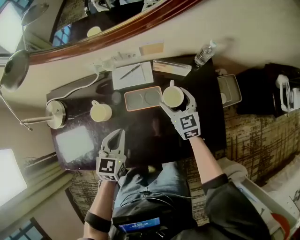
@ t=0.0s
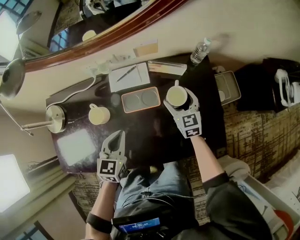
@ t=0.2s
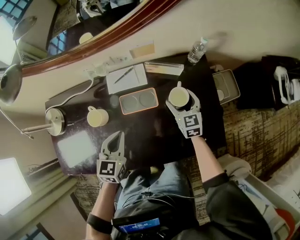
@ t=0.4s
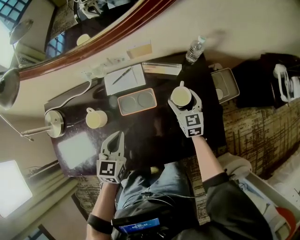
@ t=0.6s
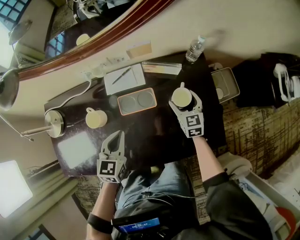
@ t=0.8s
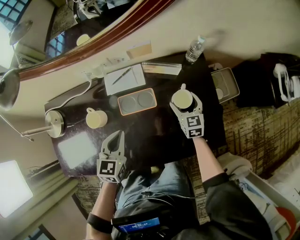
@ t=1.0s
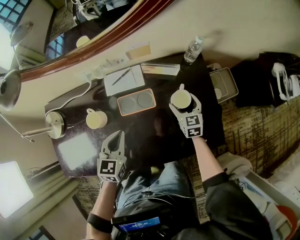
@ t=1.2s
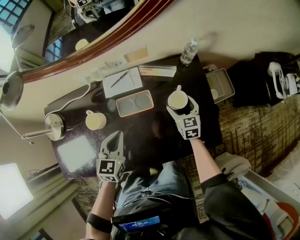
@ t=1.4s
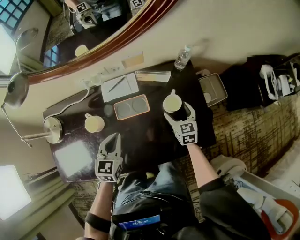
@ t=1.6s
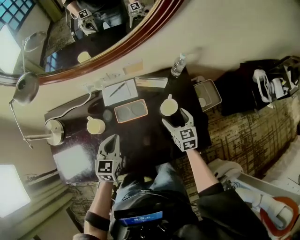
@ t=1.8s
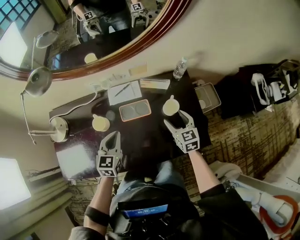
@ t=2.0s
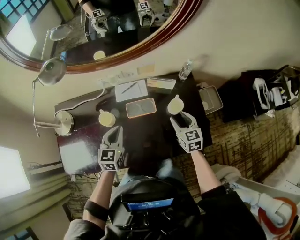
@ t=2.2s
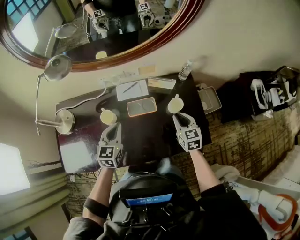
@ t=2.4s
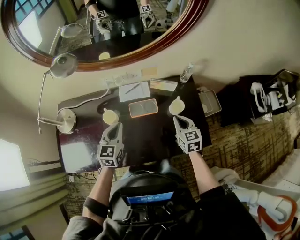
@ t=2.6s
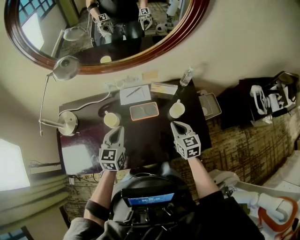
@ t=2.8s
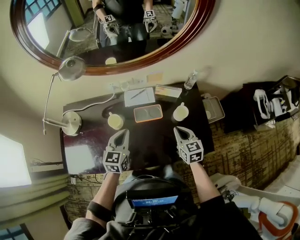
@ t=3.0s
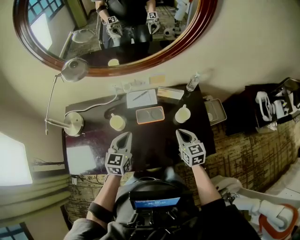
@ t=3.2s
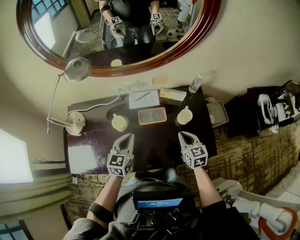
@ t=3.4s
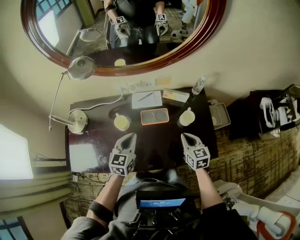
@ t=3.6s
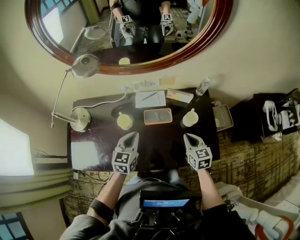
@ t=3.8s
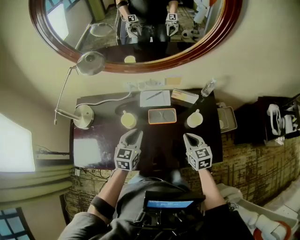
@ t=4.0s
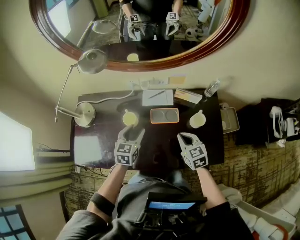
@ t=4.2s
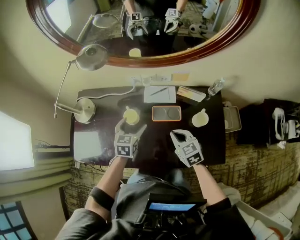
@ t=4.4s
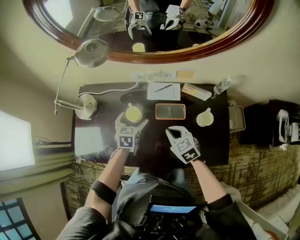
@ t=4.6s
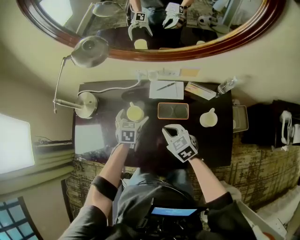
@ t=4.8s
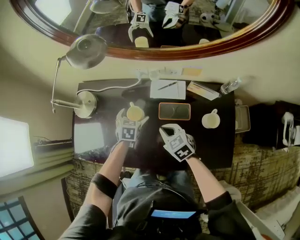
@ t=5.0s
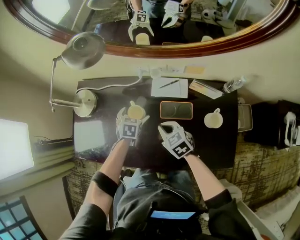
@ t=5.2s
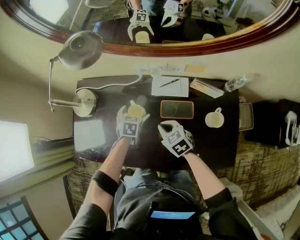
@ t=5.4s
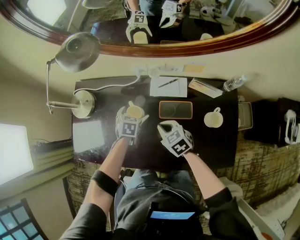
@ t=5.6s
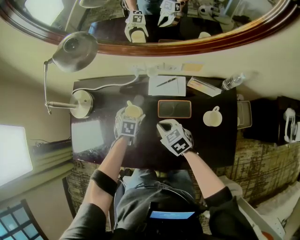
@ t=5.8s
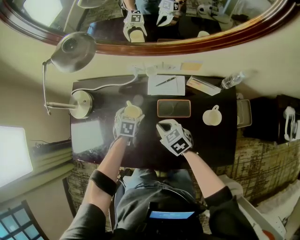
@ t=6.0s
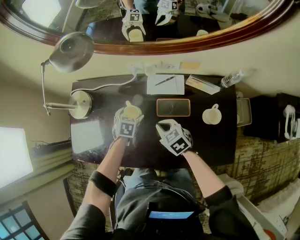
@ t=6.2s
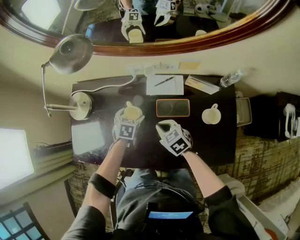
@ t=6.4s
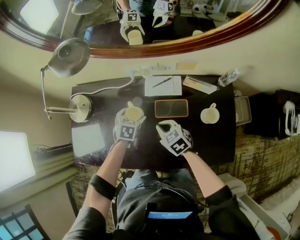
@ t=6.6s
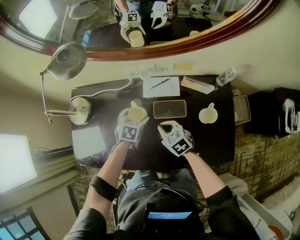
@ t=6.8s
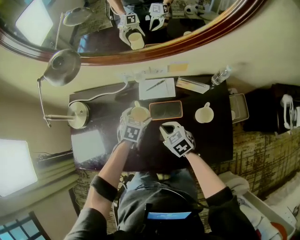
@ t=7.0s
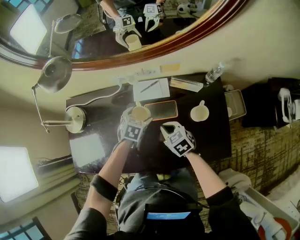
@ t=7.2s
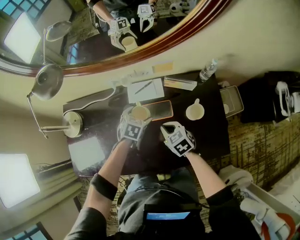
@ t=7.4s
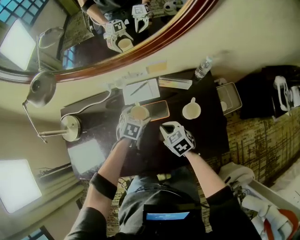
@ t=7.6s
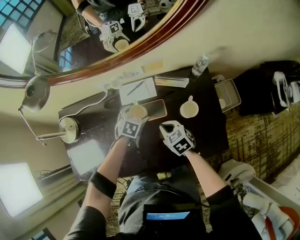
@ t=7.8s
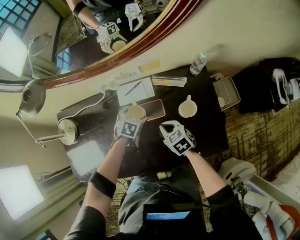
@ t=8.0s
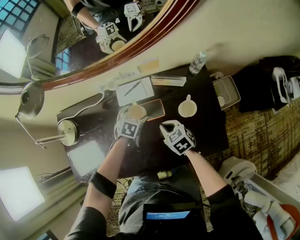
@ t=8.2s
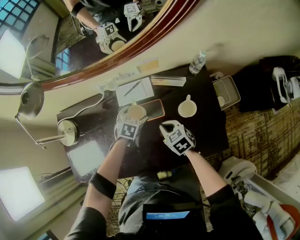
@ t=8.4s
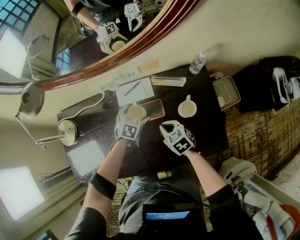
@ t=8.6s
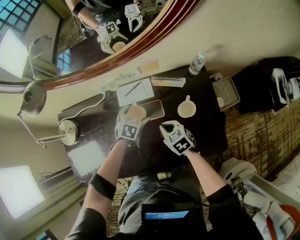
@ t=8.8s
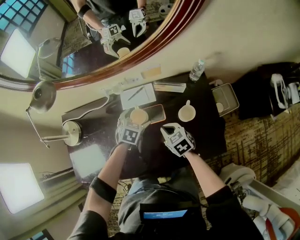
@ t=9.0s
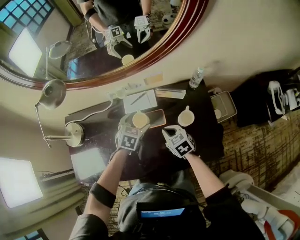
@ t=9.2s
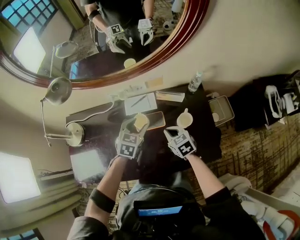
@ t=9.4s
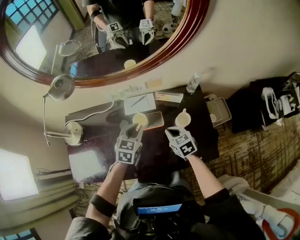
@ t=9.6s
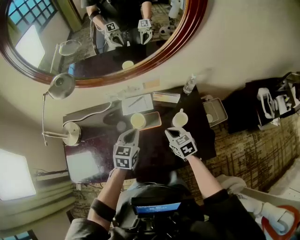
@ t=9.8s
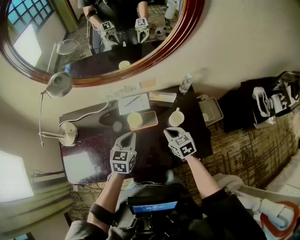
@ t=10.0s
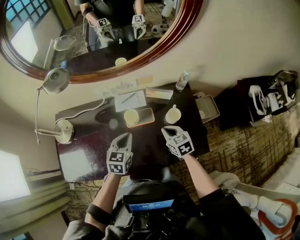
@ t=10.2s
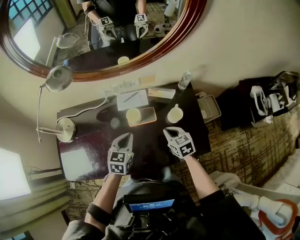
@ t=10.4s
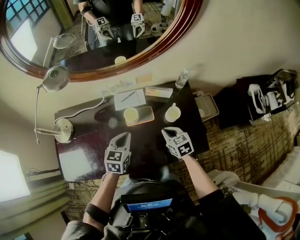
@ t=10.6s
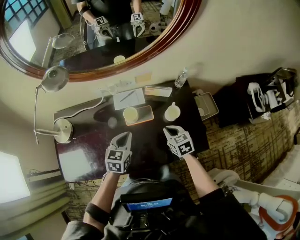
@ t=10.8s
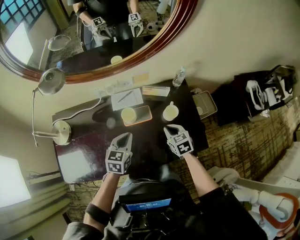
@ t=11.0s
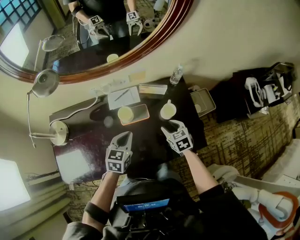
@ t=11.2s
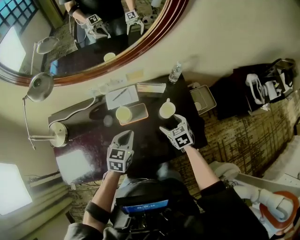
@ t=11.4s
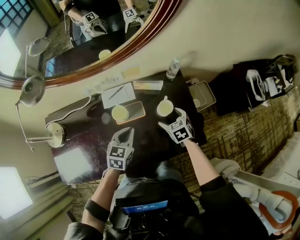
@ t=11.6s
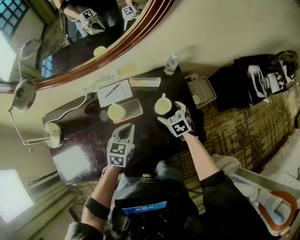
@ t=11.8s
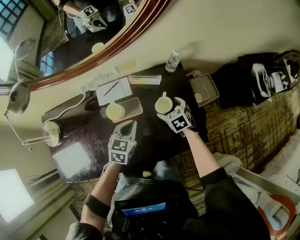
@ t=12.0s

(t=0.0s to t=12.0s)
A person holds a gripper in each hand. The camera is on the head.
t=0.0s - t=1.6s: The right gripper shifts roughly 10 cm to the right.
t=1.6s - t=3.0s: The right gripper is displaced upward, backward and to the left by some 20 cm, and closes its fingers. Meanwhile the left gripper is displaced to the left and upward by some 10 cm.
t=3.0s - t=4.4s: The right gripper is displaced to the left by some 10 cm, and swivels roughly 30 degrees. The left gripper moves forward and downward, approximately 10 cm, and opens.
t=4.4s - t=6.0s: The left gripper moves downward and forward, about 15 cm, and rotates approximately 30 degrees. Meanwhile the right gripper shifts about 15 cm downward, to the left and forward.
t=6.0s - t=7.6s: Both grippers move to the right, some 15 cm. The left gripper changes its angle by about 20 degrees.
t=7.6s - t=9.0s: The grippers make only small movements.
t=9.0s - t=10.4s: The right gripper goes some 5 cm upward; the left gripper shifts roughly 15 cm backward and upward, turns by roughly 30 degrees, and closes up.
t=10.4s - t=12.0s: The left gripper moves to the right, forward and downward, approximately 15 cm; the right gripper travels downward, forward and to the right by approximately 15 cm, and opens its fingers.

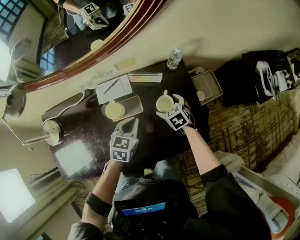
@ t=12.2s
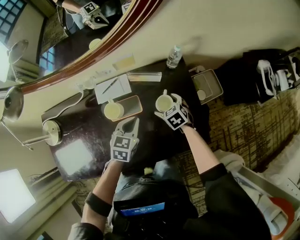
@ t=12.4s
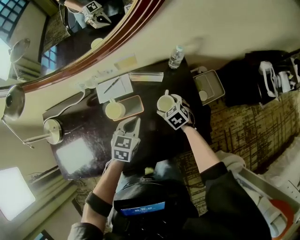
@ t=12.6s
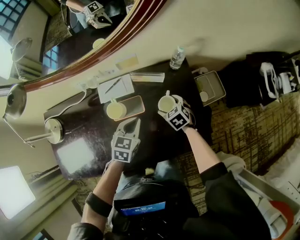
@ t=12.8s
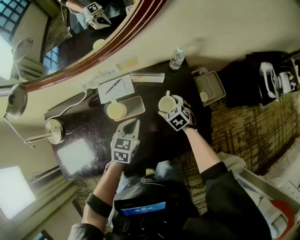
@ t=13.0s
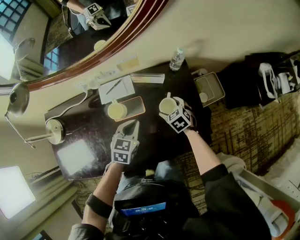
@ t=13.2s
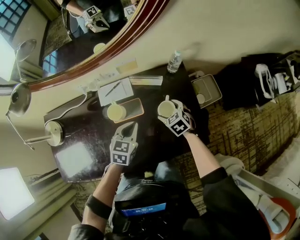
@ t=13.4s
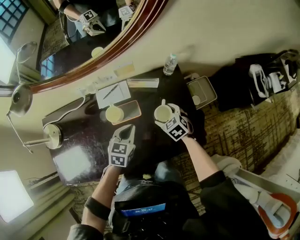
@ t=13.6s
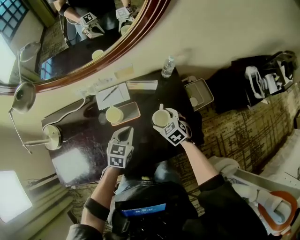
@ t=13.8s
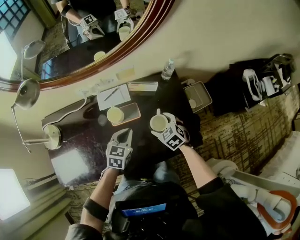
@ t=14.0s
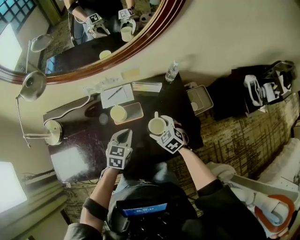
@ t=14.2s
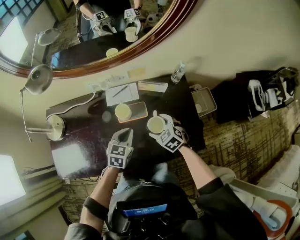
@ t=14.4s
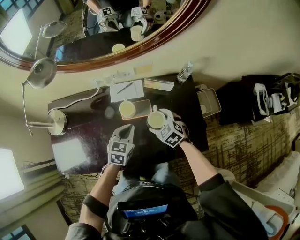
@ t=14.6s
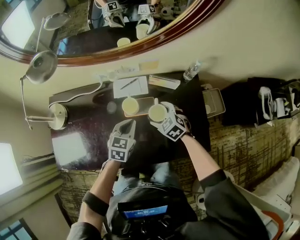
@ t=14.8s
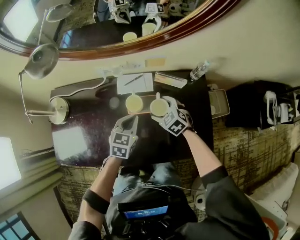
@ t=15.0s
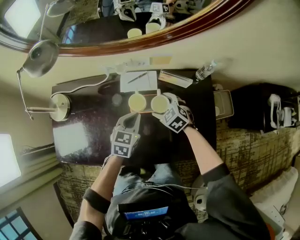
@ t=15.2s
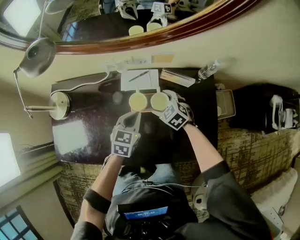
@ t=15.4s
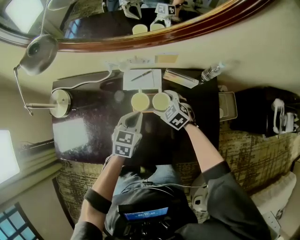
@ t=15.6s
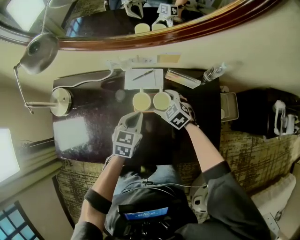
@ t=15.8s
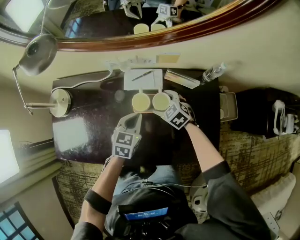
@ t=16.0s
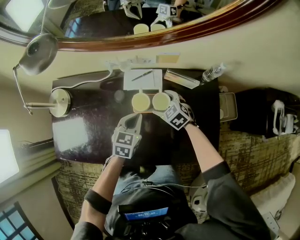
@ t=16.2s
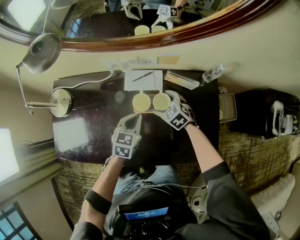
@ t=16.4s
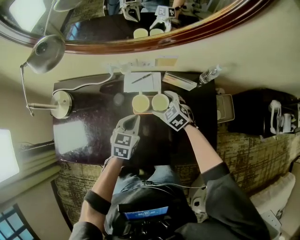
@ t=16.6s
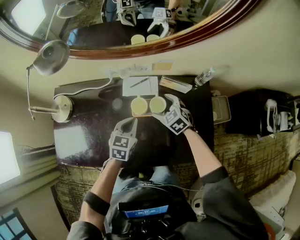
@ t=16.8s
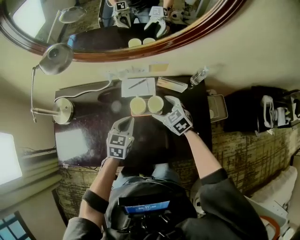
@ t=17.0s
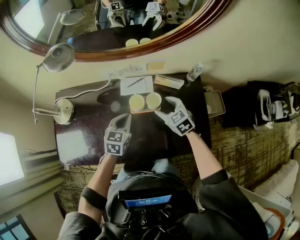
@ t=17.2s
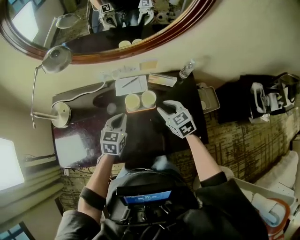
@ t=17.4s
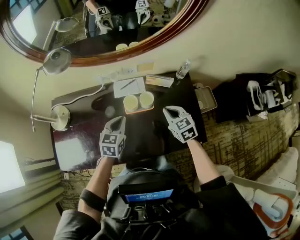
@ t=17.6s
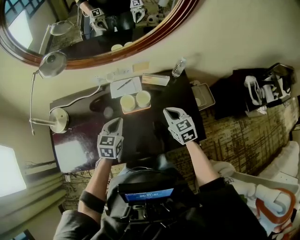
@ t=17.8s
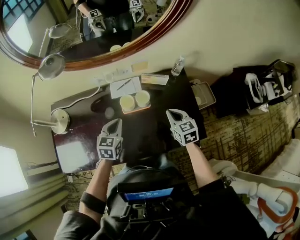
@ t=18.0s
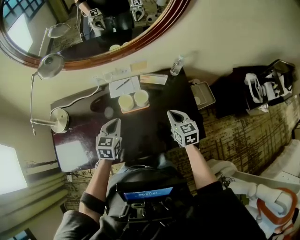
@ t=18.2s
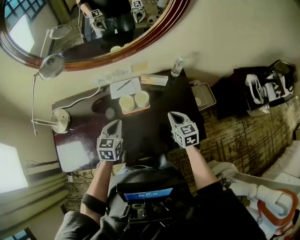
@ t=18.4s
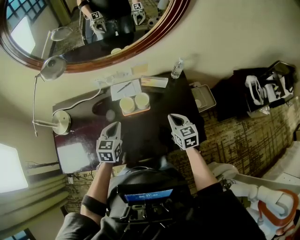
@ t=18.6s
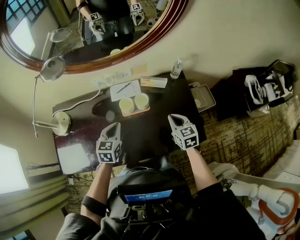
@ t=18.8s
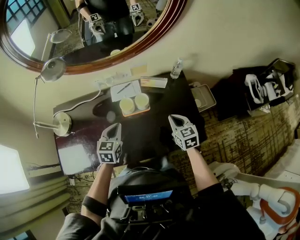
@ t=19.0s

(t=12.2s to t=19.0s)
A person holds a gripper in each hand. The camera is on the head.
t=12.2s - t=13.6s: The grippers move only a little.
t=13.6s - t=15.0s: The left gripper travels to the left by approximately 10 cm. The right gripper goes some 15 cm to the left, and changes its angle by some 20 degrees.
t=15.0s - t=16.2s: The right gripper shifts by roughly 5 cm.
t=16.2s - t=17.6s: The left gripper travels upward by roughly 10 cm. The right gripper is displaced upward, backward and to the right by approximately 20 cm, rotates roughly 30 degrees, and closes up.
t=17.6s - t=19.0s: The right gripper heads to the right, covering some 5 cm.

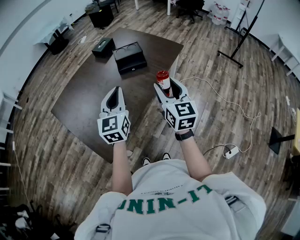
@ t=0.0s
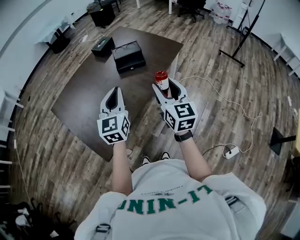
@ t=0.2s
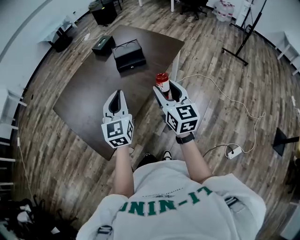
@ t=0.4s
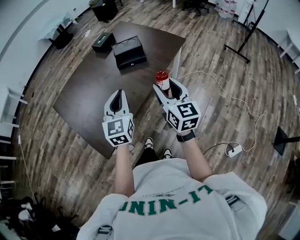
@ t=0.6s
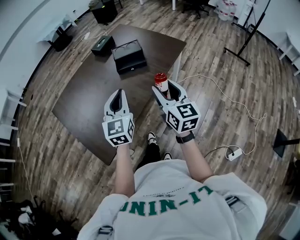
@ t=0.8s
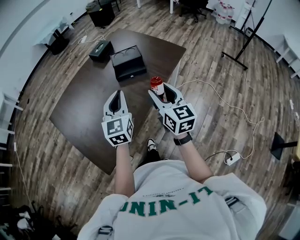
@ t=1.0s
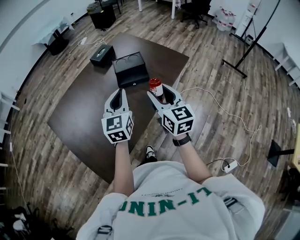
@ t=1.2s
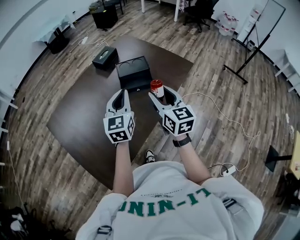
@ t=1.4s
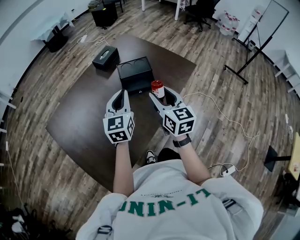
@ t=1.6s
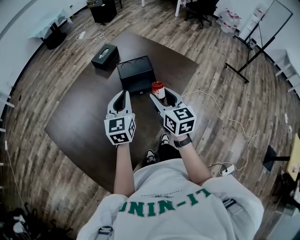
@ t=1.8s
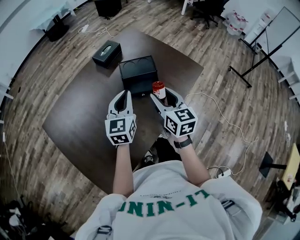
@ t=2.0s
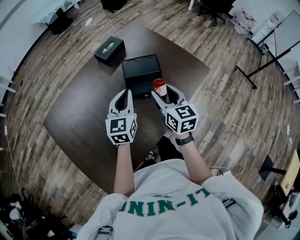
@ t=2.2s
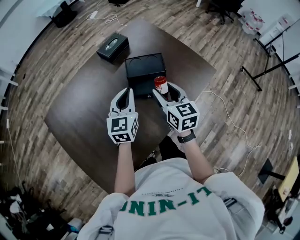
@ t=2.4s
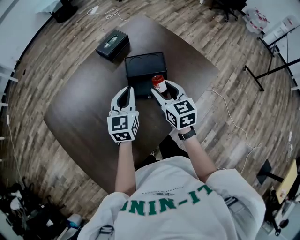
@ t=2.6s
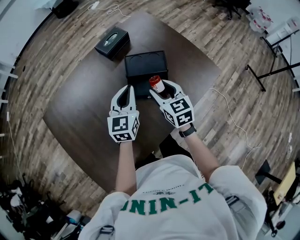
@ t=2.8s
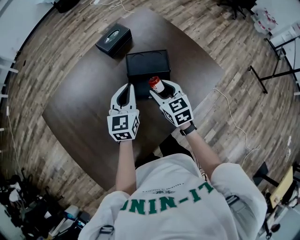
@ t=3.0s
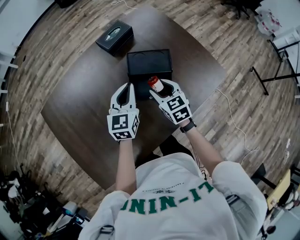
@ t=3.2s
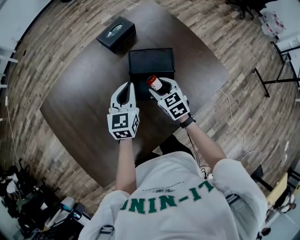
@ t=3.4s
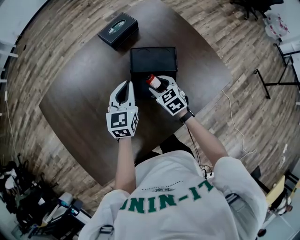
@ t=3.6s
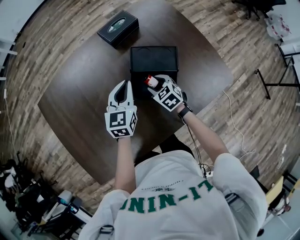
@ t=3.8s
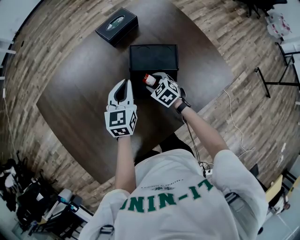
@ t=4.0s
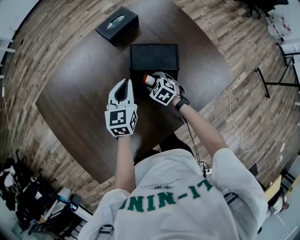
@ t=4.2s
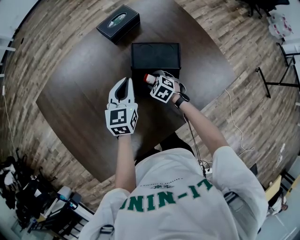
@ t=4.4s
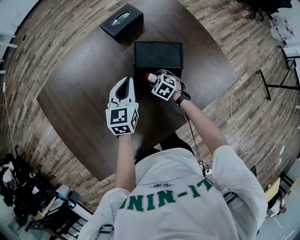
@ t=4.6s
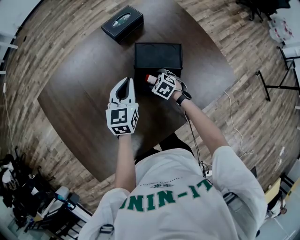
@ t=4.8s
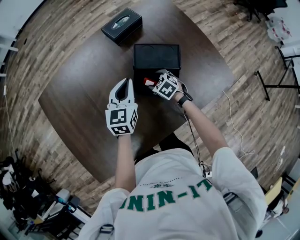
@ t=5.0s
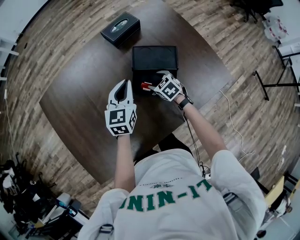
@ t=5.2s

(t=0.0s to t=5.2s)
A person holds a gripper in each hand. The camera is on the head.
t=0.0s - t=1.8s: The two grippers go some 30 cm forward.
t=1.8s - t=3.4s: The two grippers go about 30 cm forward and downward. The right gripper turns by some 40 degrees.
t=3.4s - t=5.2s: The right gripper moves downward, roughly 10 cm, and turns by roughly 20 degrees.
